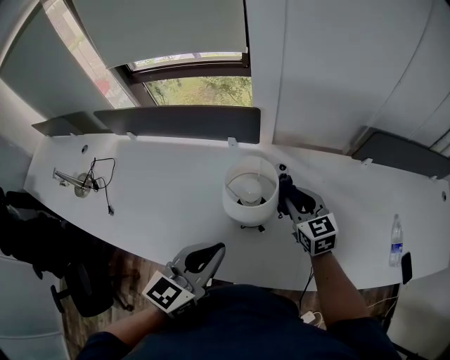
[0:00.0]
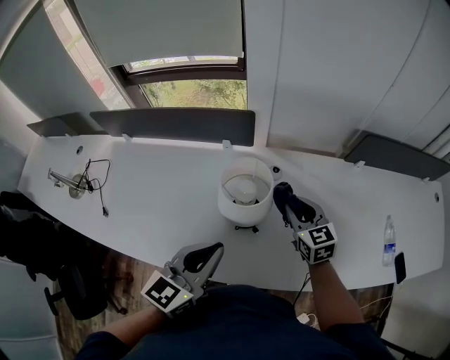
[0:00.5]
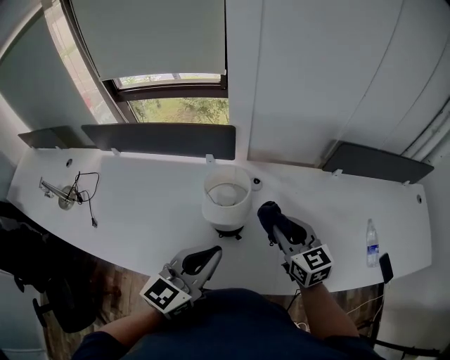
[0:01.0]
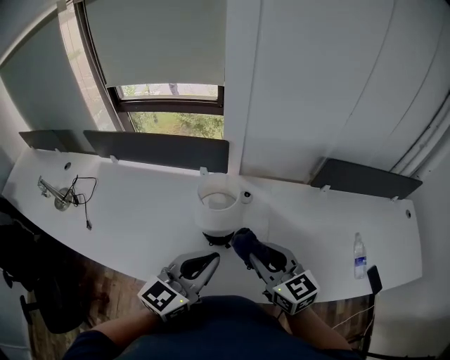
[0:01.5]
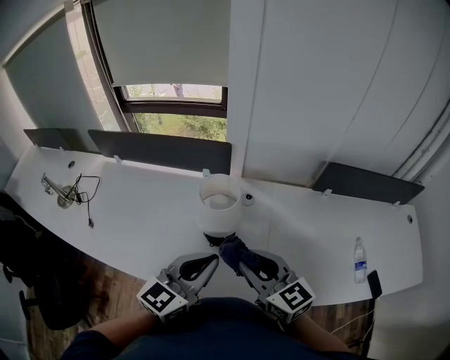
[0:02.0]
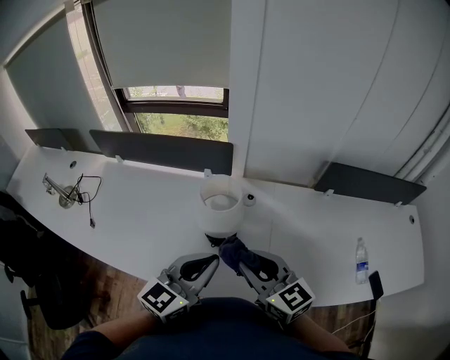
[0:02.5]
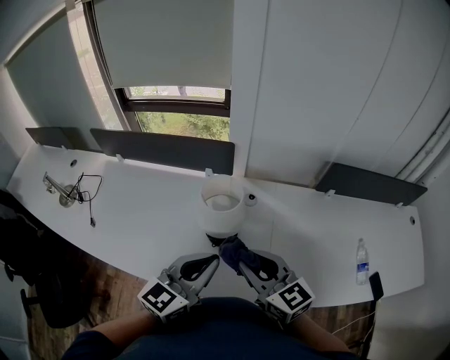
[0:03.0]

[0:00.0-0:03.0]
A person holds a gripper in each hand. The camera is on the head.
0:00.0 to 0:01.5: The right gripper is displaced backward and upward by about 20 cm, while the left gripper travels to the right by about 5 cm.
0:01.5 to 0:03.0: There are only small adjustments of the grippers.

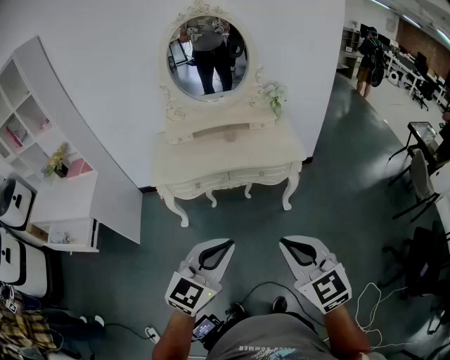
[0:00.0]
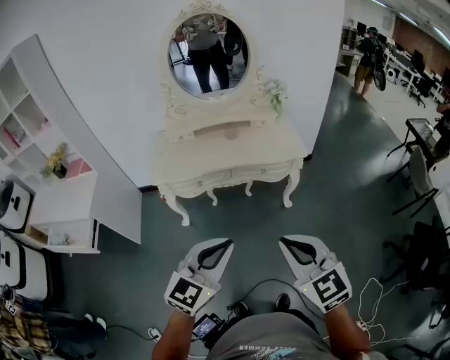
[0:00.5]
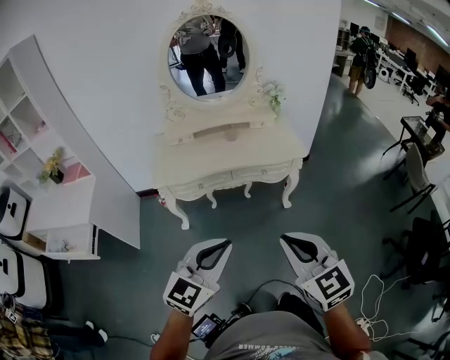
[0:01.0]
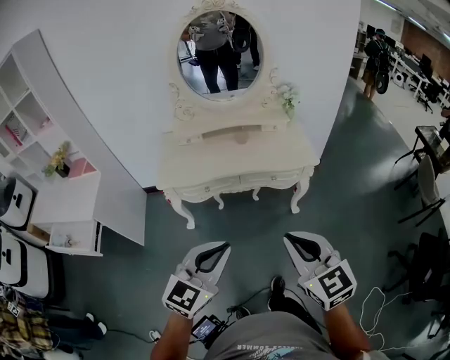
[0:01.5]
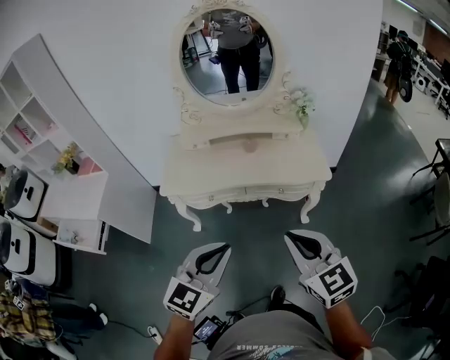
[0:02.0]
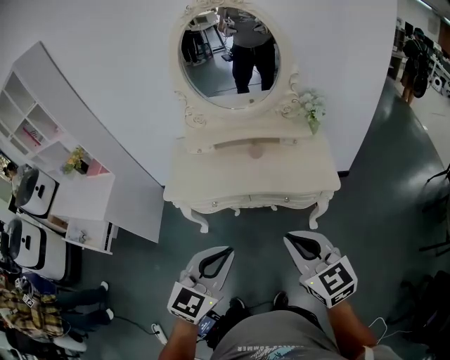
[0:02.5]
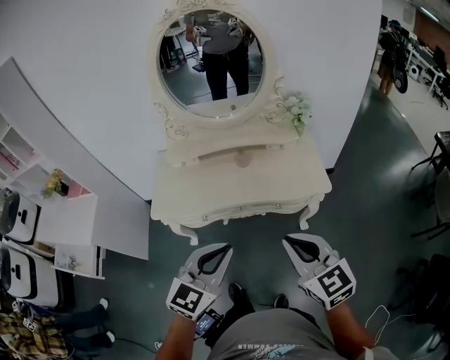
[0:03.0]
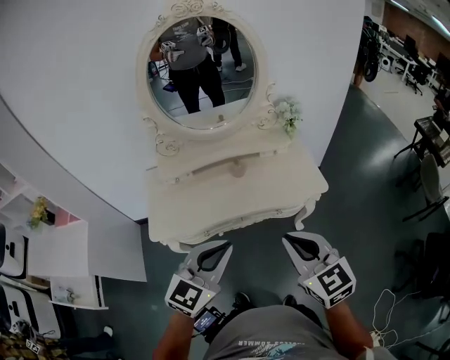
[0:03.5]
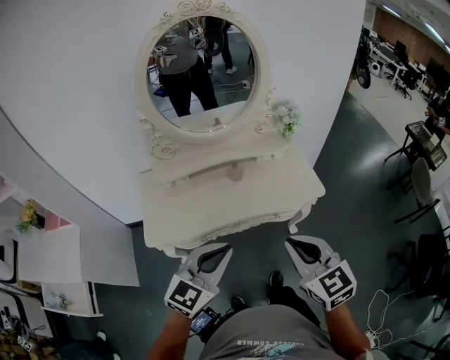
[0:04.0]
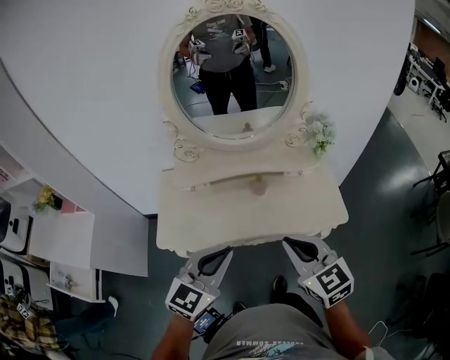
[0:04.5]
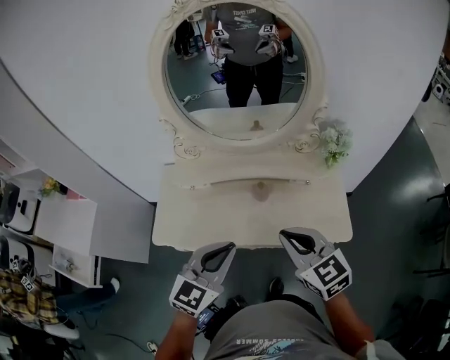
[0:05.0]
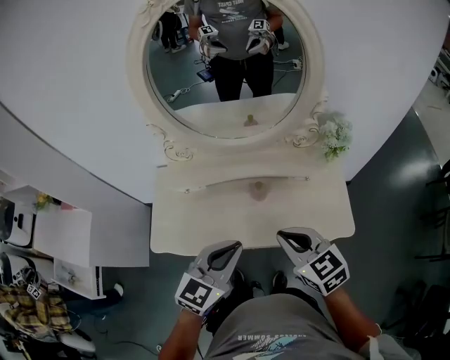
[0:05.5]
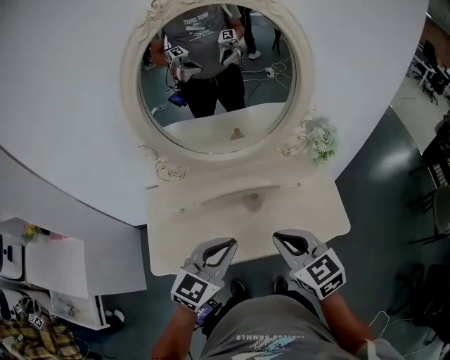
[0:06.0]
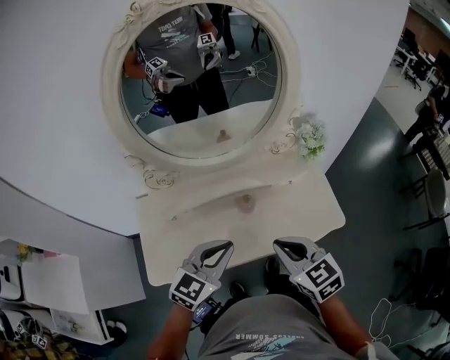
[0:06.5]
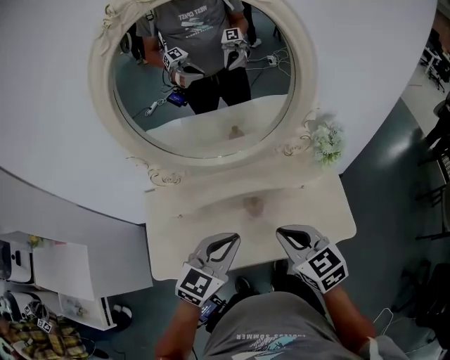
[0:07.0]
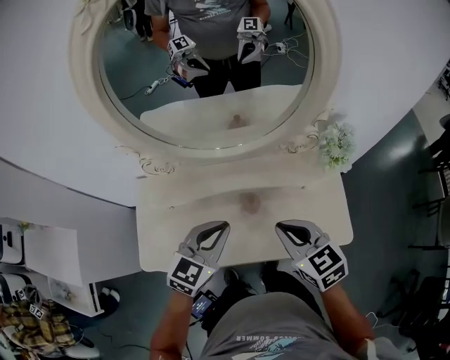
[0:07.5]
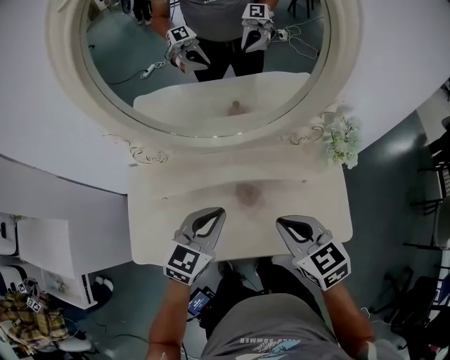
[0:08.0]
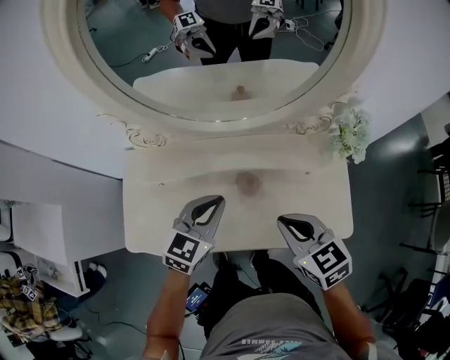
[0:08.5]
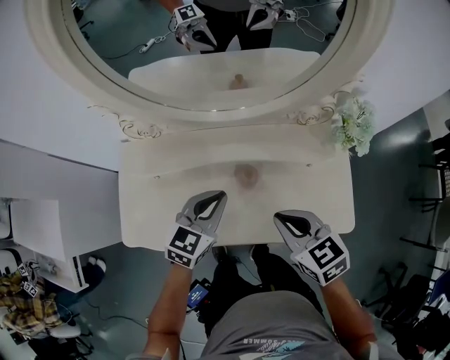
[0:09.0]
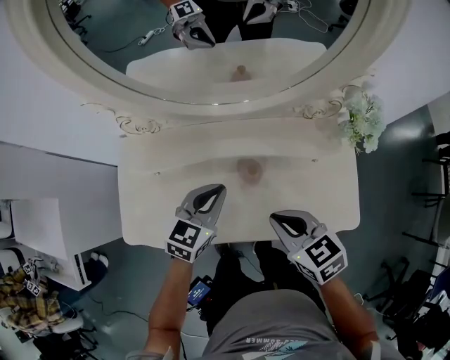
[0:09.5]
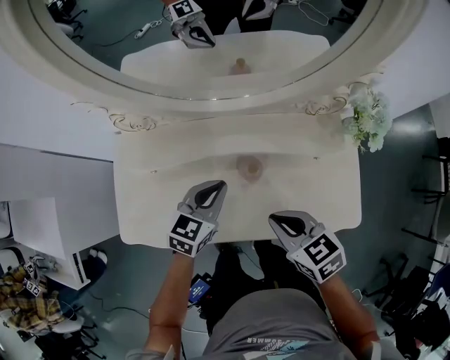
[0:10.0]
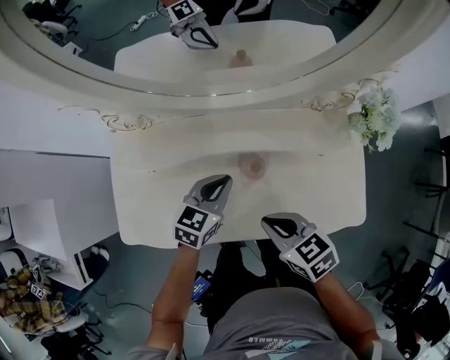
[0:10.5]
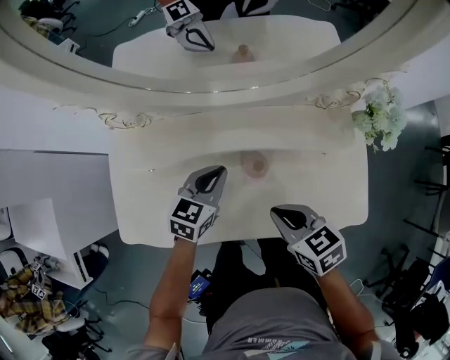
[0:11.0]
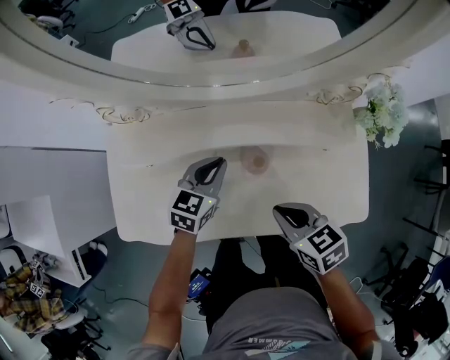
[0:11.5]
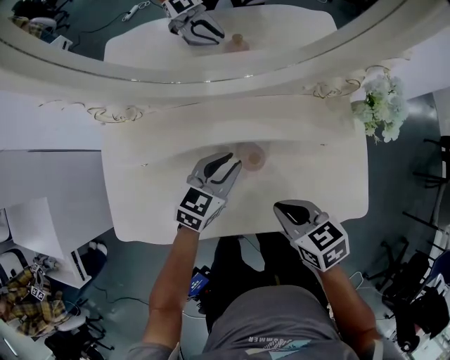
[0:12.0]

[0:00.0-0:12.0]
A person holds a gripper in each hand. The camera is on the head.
0:00.0 to 0:02.0: Both grippers travel together forward, about 15 cm.
0:02.0 to 0:04.0: The grippers both shift forward and to the left by roughly 20 cm.
0:04.0 to 0:06.0: Both grippers move forward, about 25 cm.
0:06.0 to 0:08.0: Both grippers travel together forward and downward, roughly 15 cm.
0:08.0 to 0:10.0: Both grippers move downward, roughly 10 cm.
0:10.0 to 0:12.0: The grippers both shift downward by approximately 5 cm. The left gripper opens.

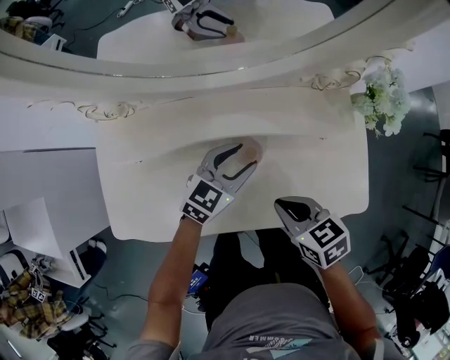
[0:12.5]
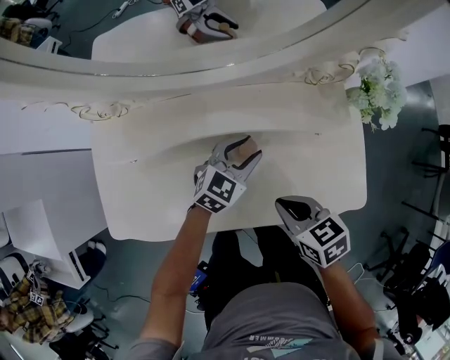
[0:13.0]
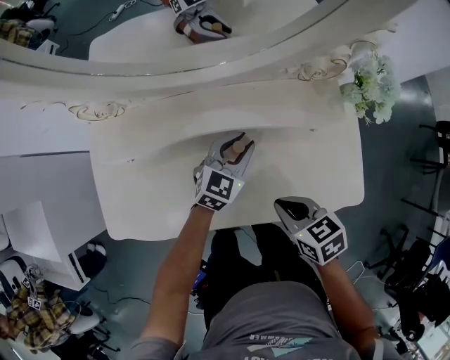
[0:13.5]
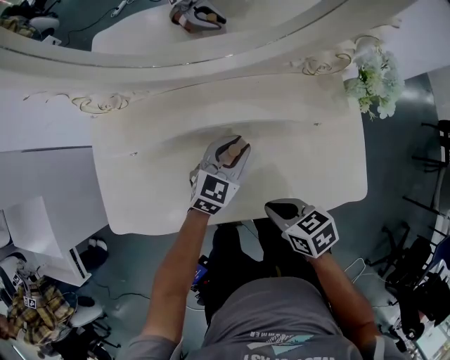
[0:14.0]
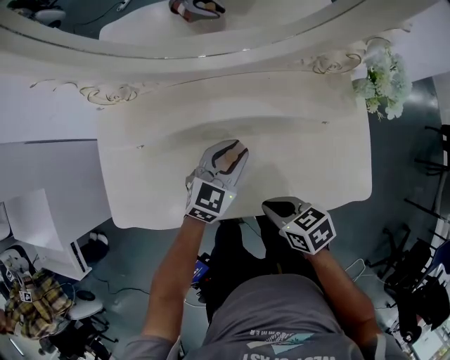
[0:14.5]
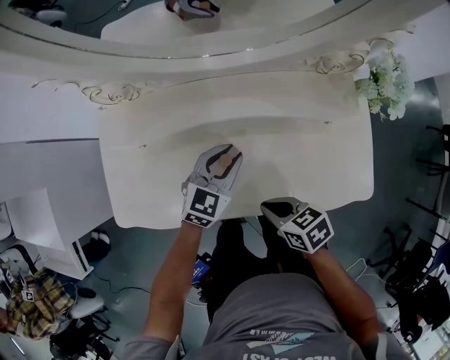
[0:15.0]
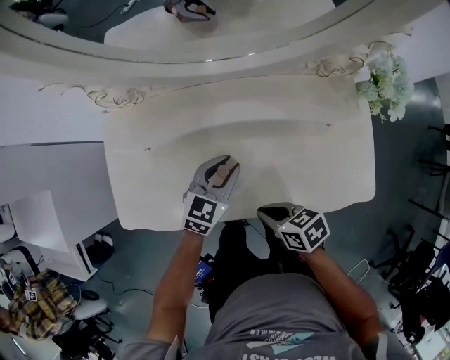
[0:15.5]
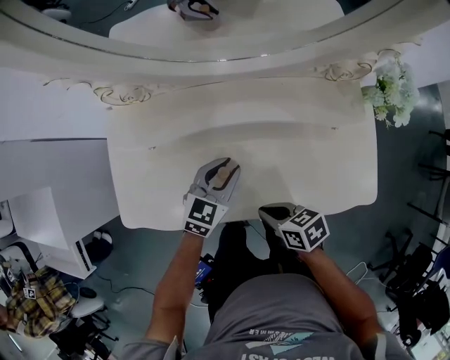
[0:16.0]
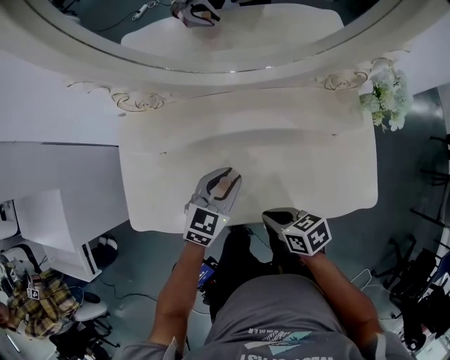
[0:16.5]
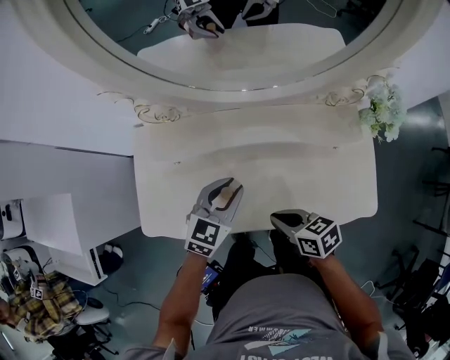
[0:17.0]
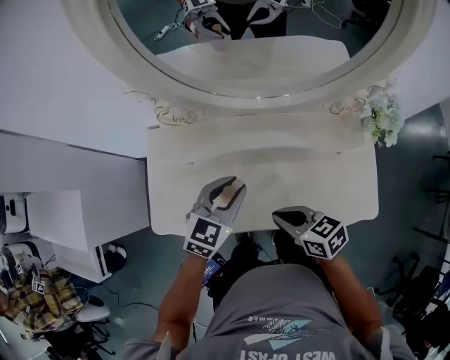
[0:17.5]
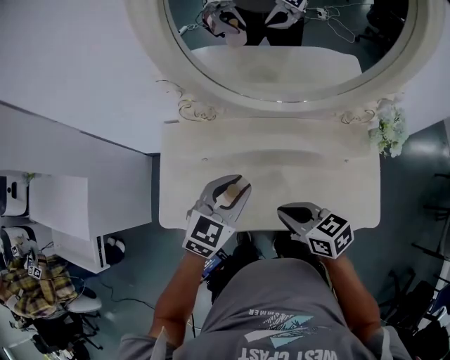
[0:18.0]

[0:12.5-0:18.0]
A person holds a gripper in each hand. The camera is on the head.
0:12.5 to 0:14.5: The right gripper heads backward, covering about 5 cm, while the left gripper closes.
0:14.5 to 0:16.0: The left gripper heads to the left, covering approximately 5 cm.
0:16.0 to 0:18.0: The right gripper is displaced upward by about 15 cm, and turns by roughly 20 degrees, while the left gripper is displaced upward and to the left by some 20 cm.

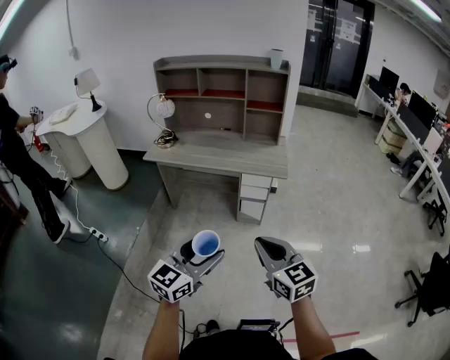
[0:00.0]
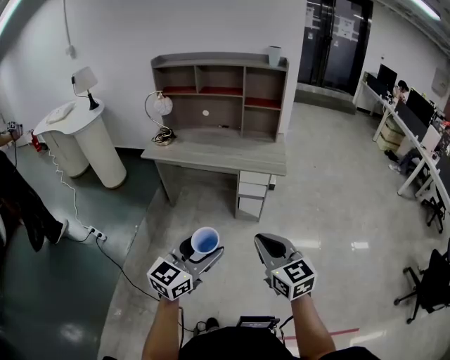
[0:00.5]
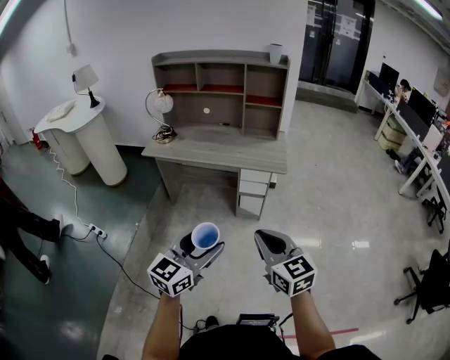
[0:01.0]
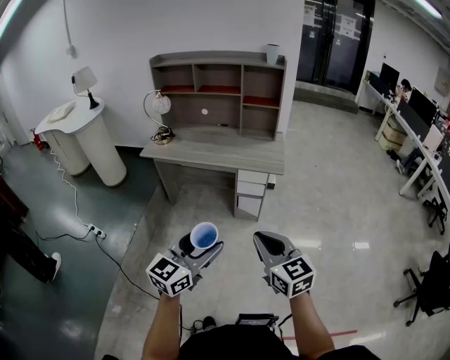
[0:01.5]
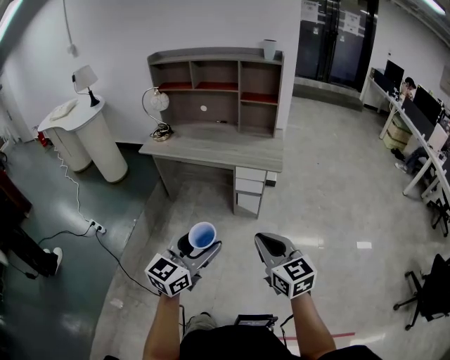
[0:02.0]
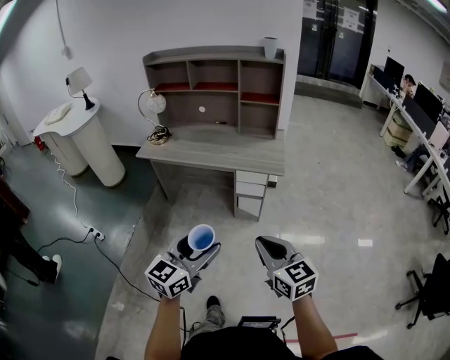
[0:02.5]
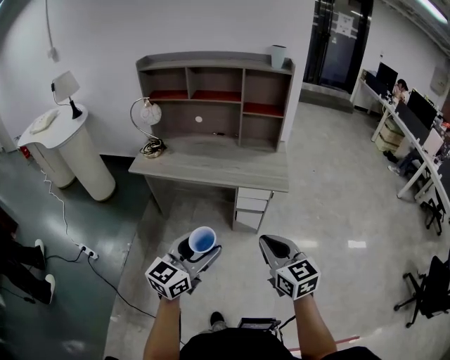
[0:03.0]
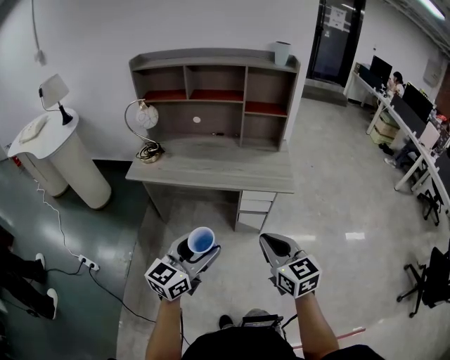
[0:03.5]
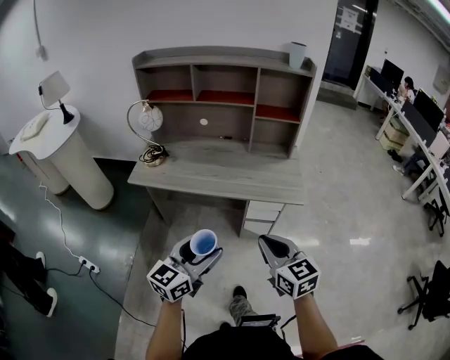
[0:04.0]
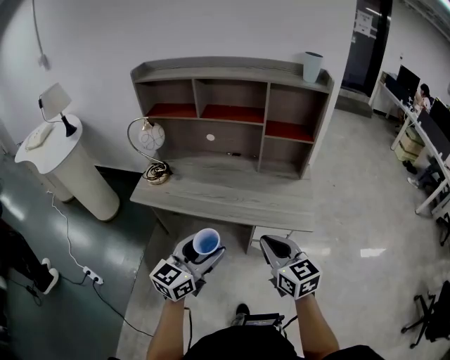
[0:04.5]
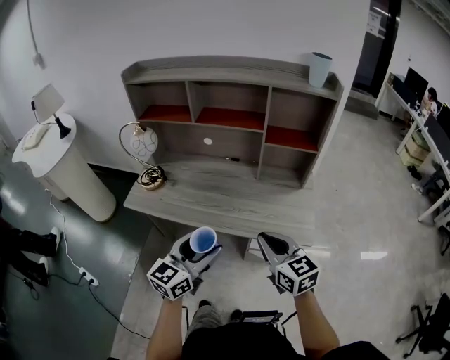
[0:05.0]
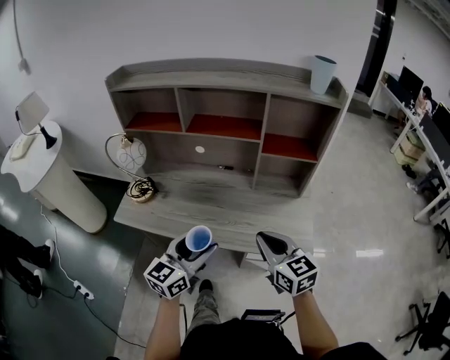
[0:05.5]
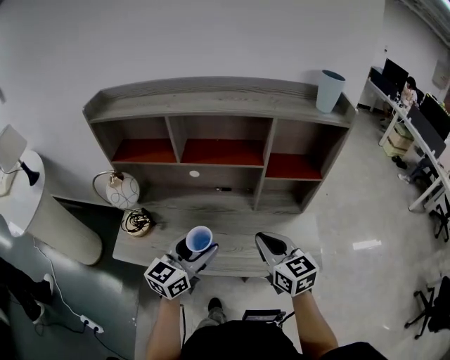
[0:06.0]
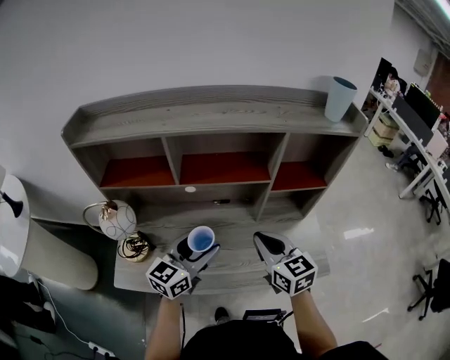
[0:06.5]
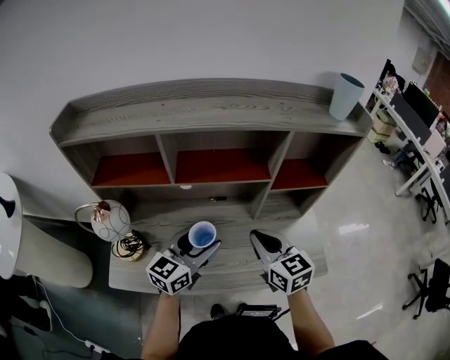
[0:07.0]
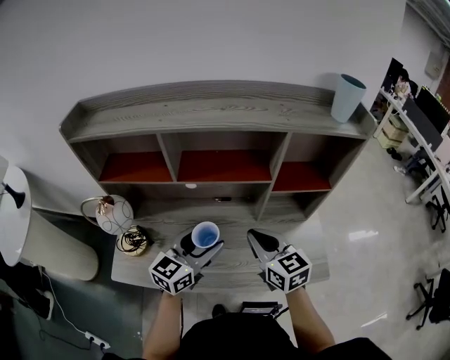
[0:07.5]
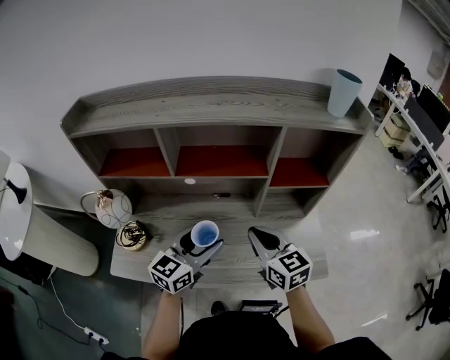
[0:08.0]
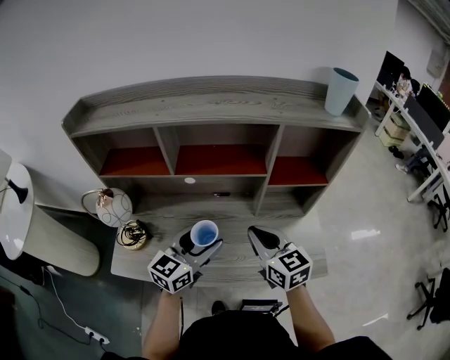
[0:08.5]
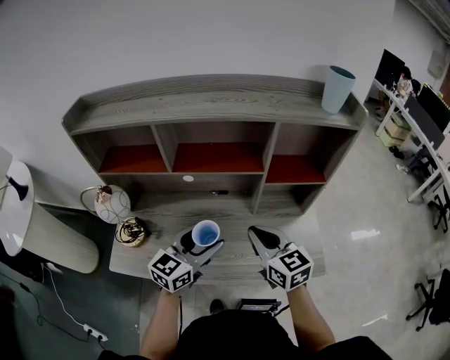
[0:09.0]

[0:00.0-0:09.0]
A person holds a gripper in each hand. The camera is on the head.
0:00.0 to 0:02.0: The grippers both shift to the right by approximately 5 cm.
0:02.0 to 0:04.5: The two grippers travel together, forward, roughly 40 cm.
0:04.5 to 0:07.0: Both grippers move forward, about 40 cm.
0:07.0 to 0:09.0: The left gripper shifts by roughly 5 cm.
